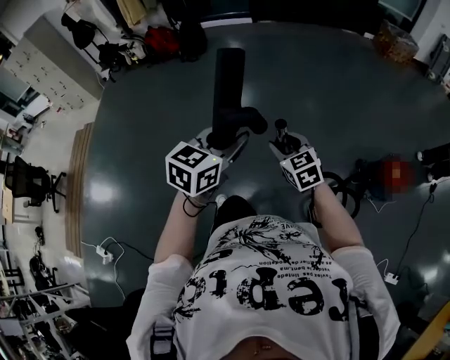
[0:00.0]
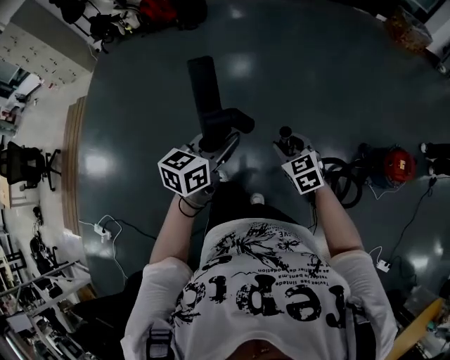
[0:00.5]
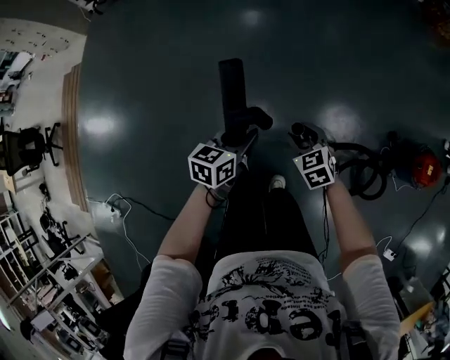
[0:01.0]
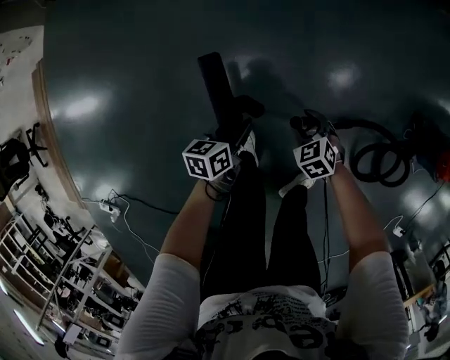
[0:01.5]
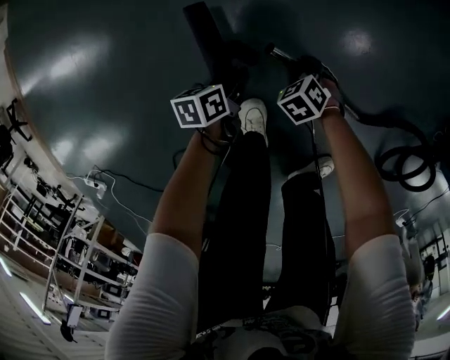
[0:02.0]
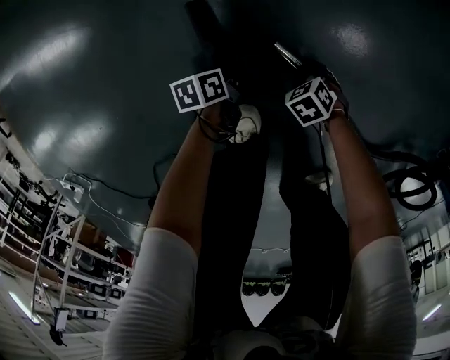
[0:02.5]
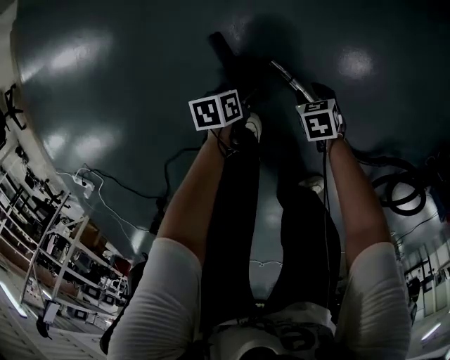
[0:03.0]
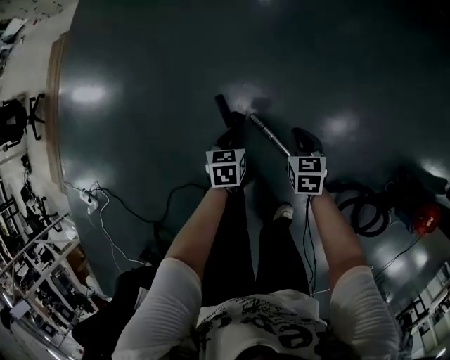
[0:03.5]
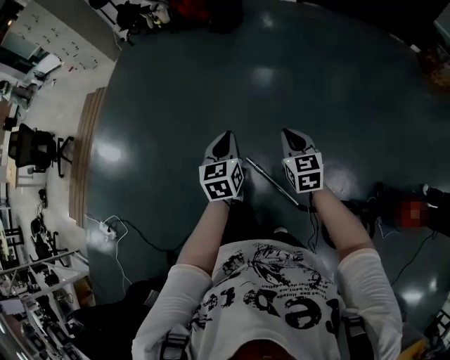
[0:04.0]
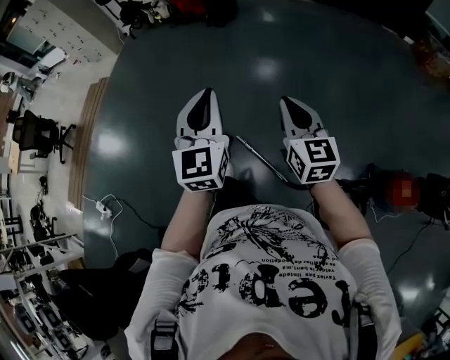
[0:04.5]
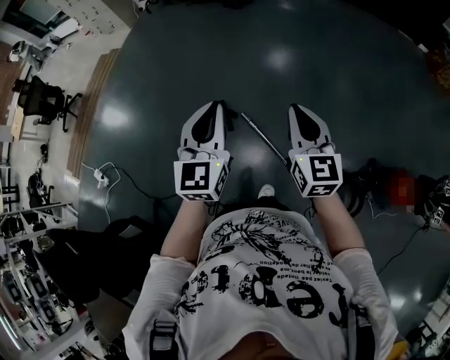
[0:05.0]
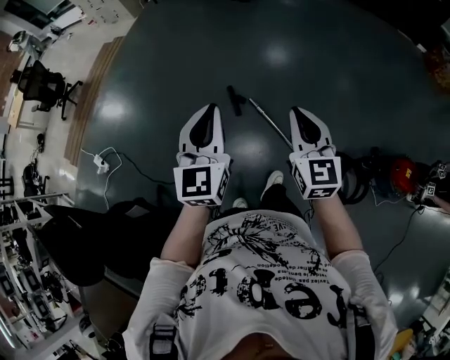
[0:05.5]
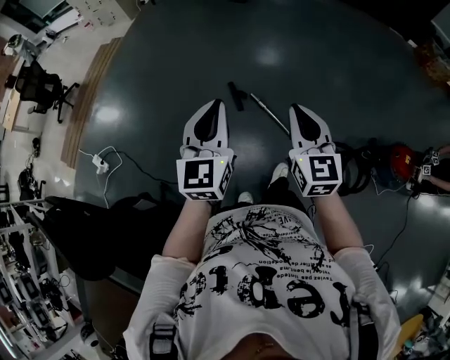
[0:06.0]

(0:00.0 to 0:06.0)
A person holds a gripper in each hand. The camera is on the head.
0:00.0 - 0:02.0: Both grippers travel together downward, about 80 cm. The left gripper twists some 60 degrees counterclockwise, seen from behind. Meanwhile the right gripper tips its fingers downward by about 50 degrees.
0:02.0 - 0:04.0: Both grippers travel together upward, about 70 cm. The right gripper angles its fingers upward, by roughly 50 degrees, and closes; the left gripper turns by about 50 degrees, and opens and closes again.
0:04.0 - 0:06.0: The pair of grippers is taken backward, about 50 cm. Both grippers move upward, about 20 cm. The left gripper turns by roughly 30 degrees.

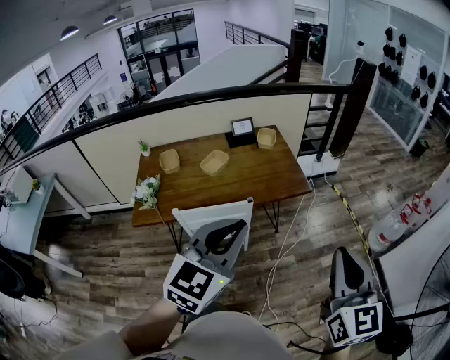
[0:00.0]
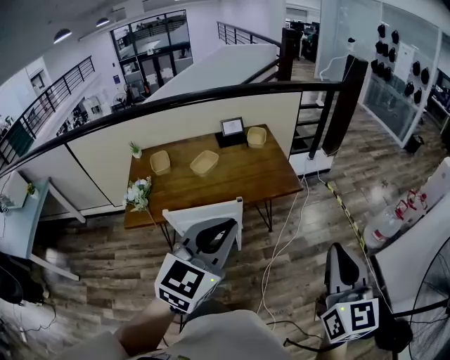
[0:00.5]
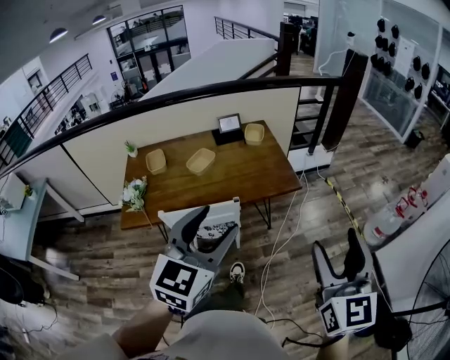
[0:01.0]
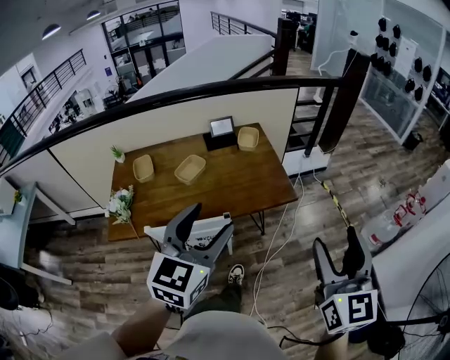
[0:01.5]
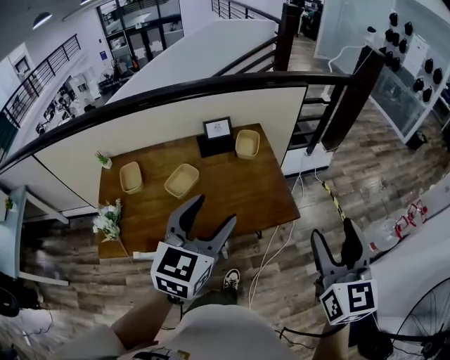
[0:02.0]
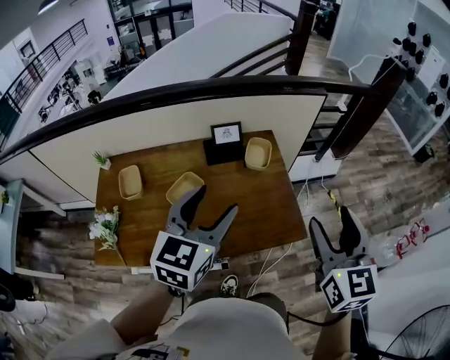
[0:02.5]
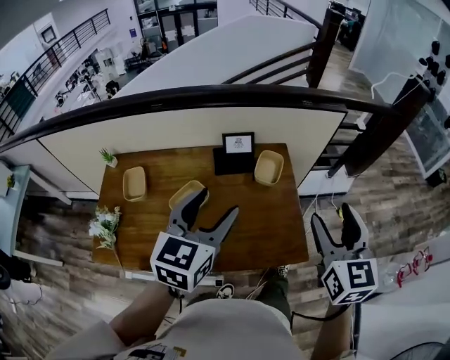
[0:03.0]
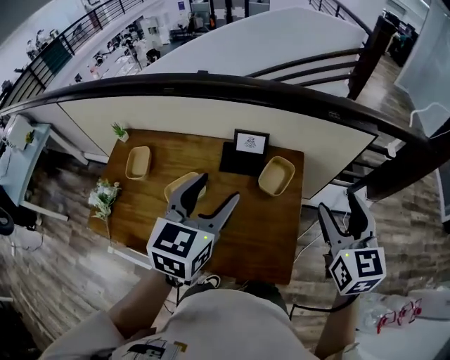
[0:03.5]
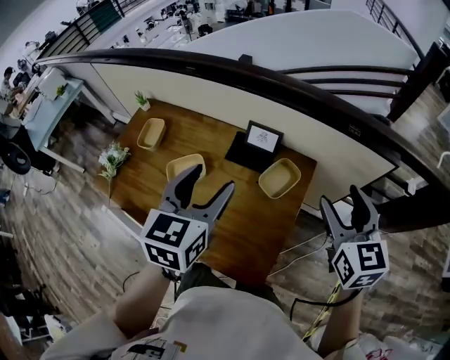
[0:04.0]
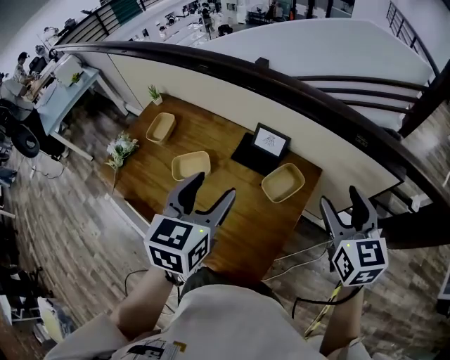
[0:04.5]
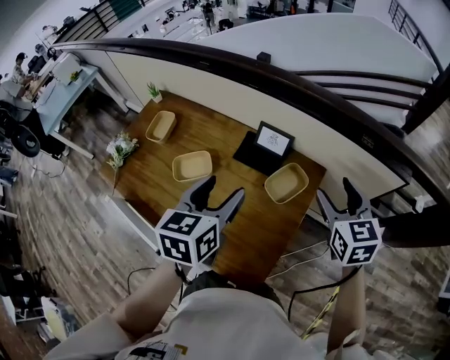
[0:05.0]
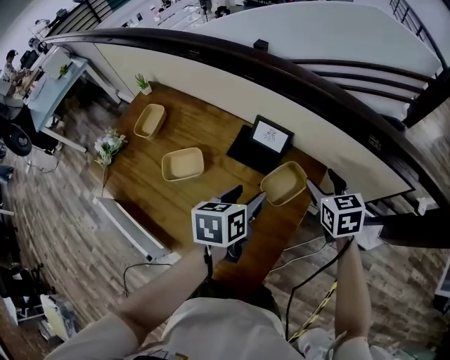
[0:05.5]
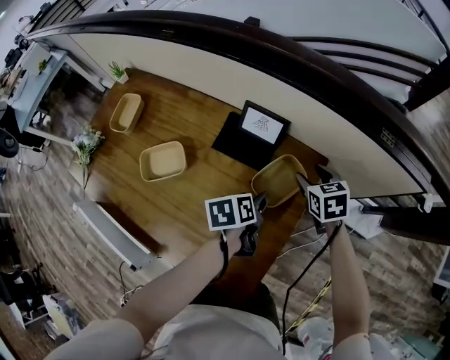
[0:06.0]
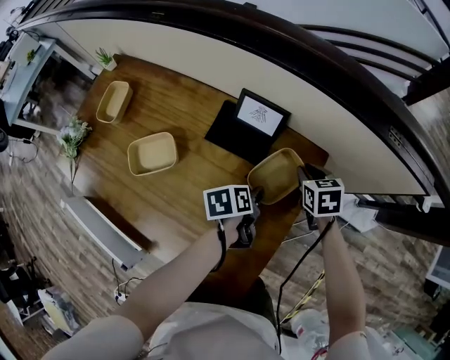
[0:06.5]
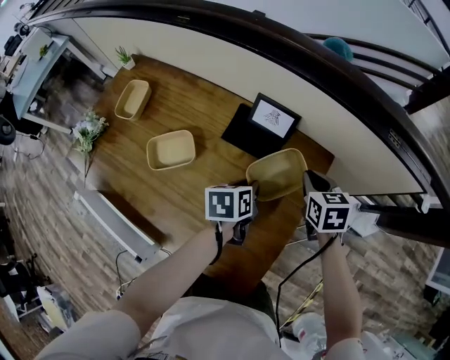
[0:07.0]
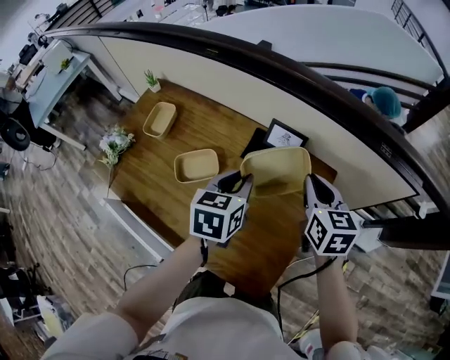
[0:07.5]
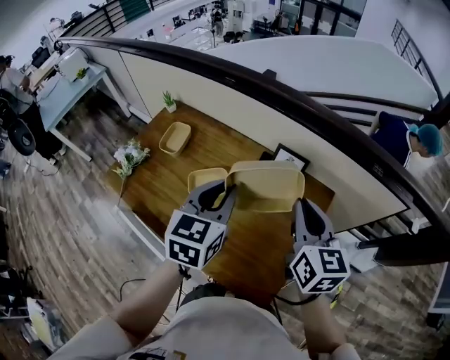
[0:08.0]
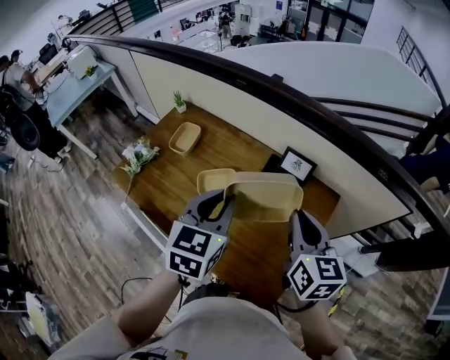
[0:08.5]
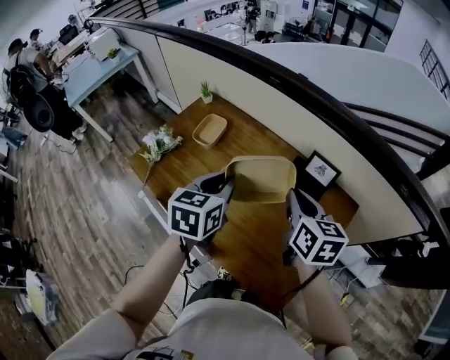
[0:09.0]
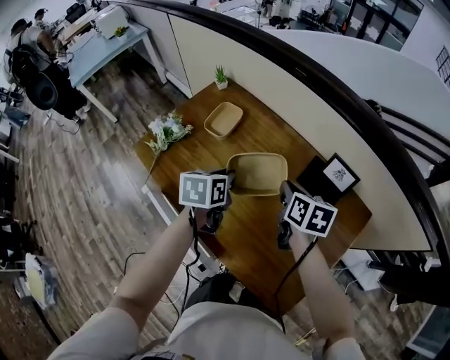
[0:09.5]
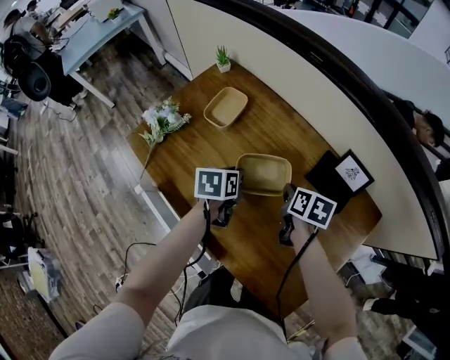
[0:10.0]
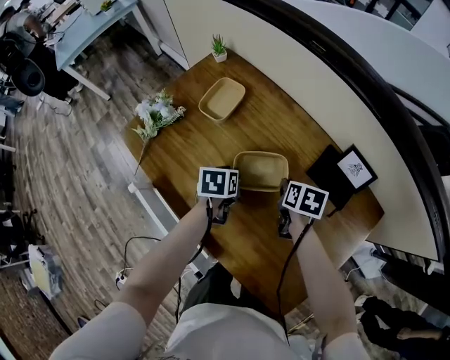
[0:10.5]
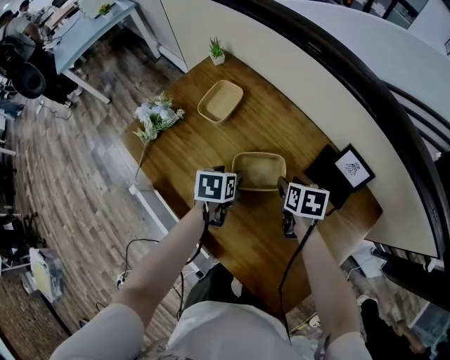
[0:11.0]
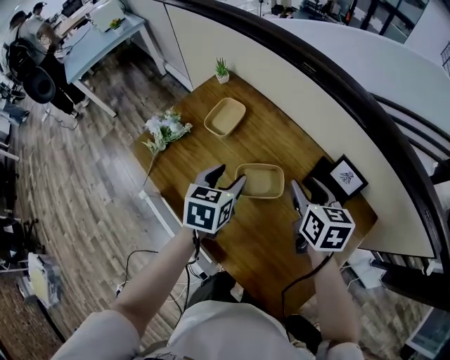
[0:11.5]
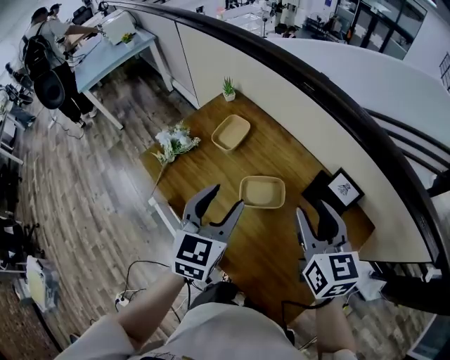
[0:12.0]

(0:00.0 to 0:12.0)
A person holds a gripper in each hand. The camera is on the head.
0:00.0 - 0:02.0: Both grippers move forward, about 30 cm. The right gripper opens up, while the left gripper opens up.
0:02.0 - 0:04.0: The left gripper shifts by approximately 30 cm, and swivels some 40 degrees. The right gripper shifts by roughly 50 cm, and swivels roughly 40 degrees.
0:04.0 - 0:06.0: The left gripper heads downward, covering approximately 35 cm, and rolls counterclockwise, seen from behind, by roughly 50 degrees; the right gripper is displaced downward and forward by approximately 35 cm, and angles its fingers downward, by approximately 30 degrees.
0:06.0 - 0:08.0: The left gripper shifts roughly 35 cm upward and to the left, rolls clockwise, seen from behind, by roughly 50 degrees, and closes its fingers. The right gripper is displaced upward, to the left and backward by about 35 cm, angles its fingers upward, by some 40 degrees, and closes up.
0:08.0 - 0:10.0: The right gripper travels downward, to the left and forward by roughly 35 cm, and tilts its fingers about 30 degrees downward. The left gripper shifts about 35 cm downward and to the left, and rotates about 40 degrees.
0:10.0 - 0:12.0: The two grippers go about 25 cm upward. The right gripper angles its fingers upward, by about 30 degrees, and opens. Meanwhile the left gripper tilts its fingers about 30 degrees upward, and opens its fingers.

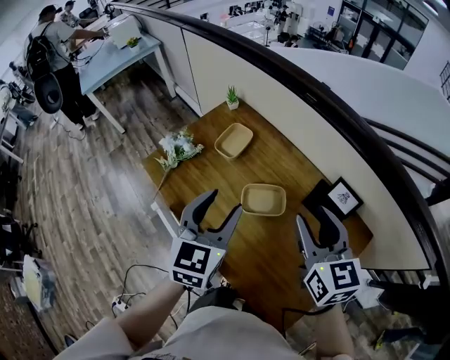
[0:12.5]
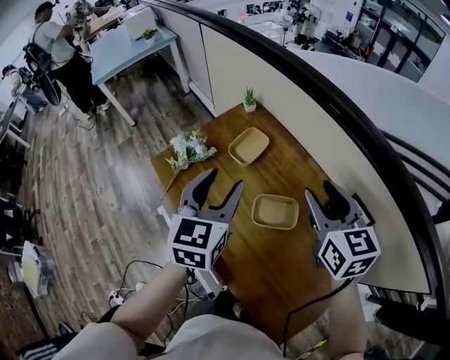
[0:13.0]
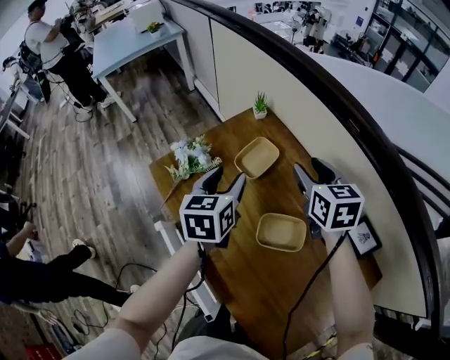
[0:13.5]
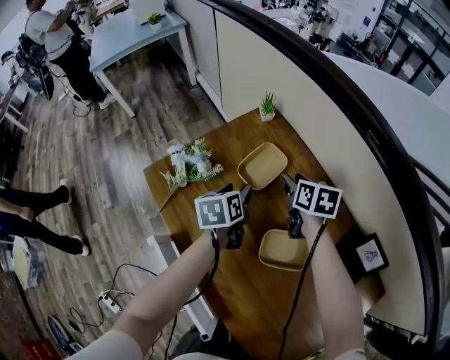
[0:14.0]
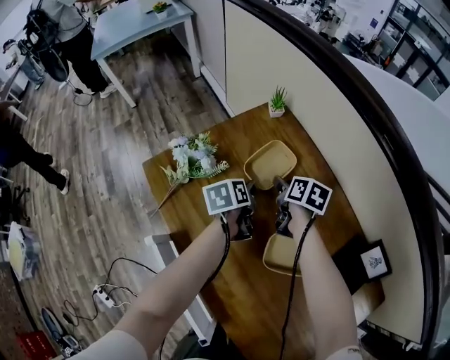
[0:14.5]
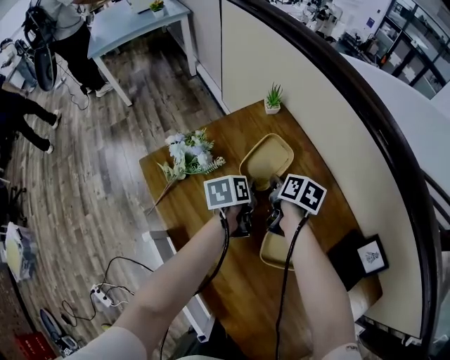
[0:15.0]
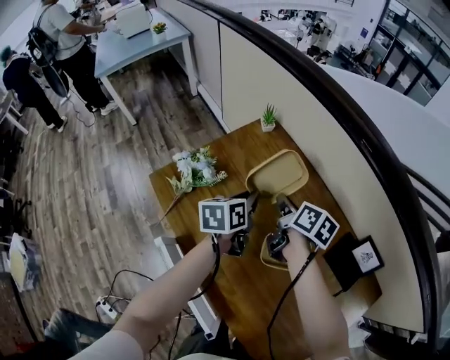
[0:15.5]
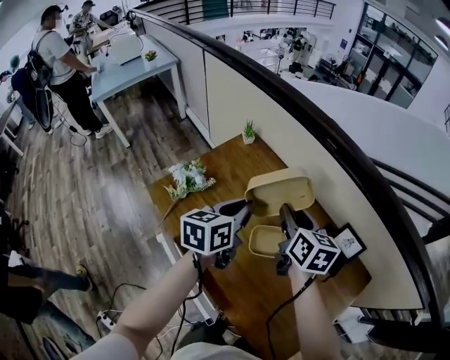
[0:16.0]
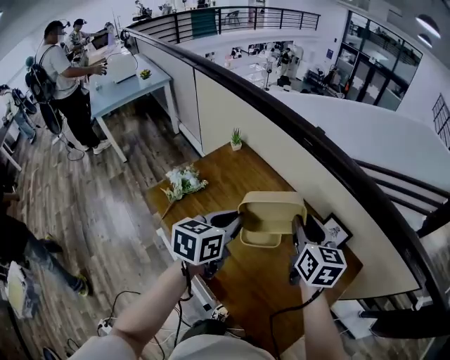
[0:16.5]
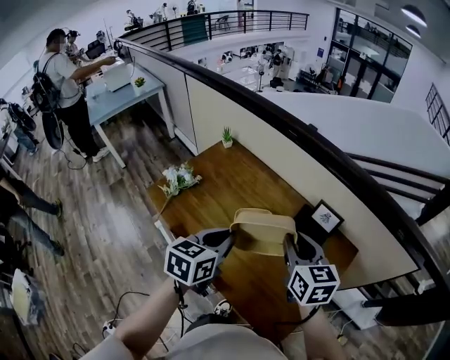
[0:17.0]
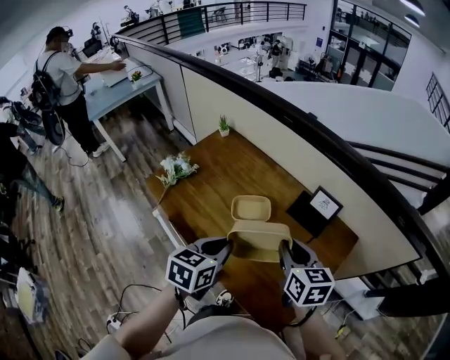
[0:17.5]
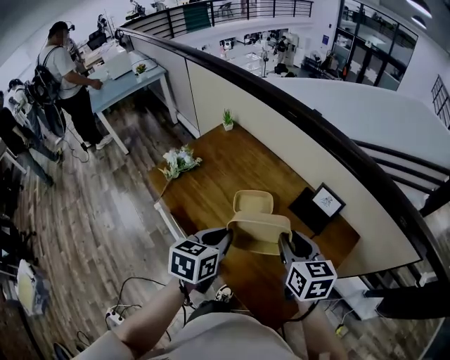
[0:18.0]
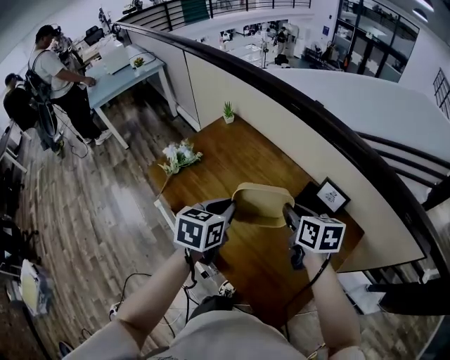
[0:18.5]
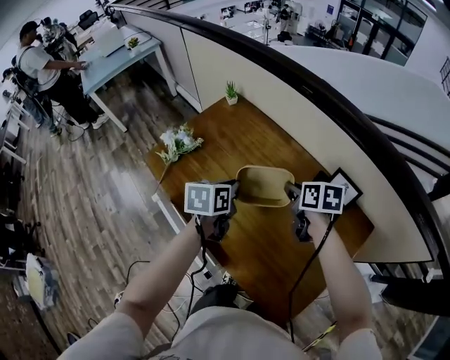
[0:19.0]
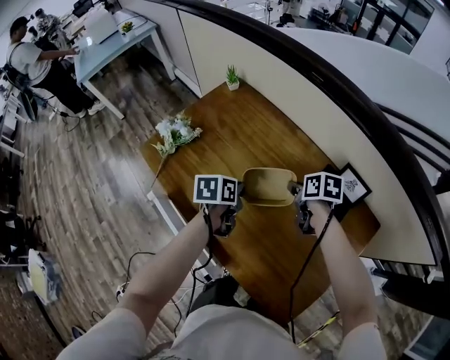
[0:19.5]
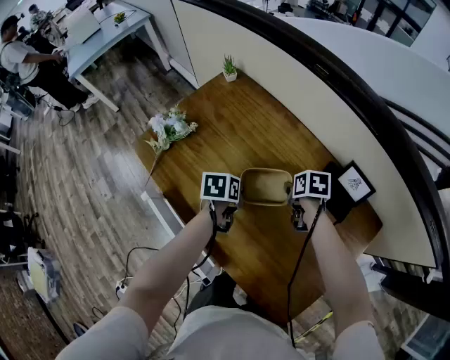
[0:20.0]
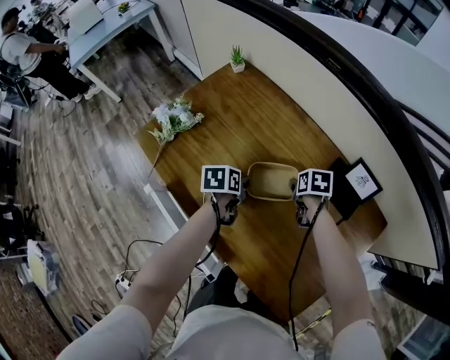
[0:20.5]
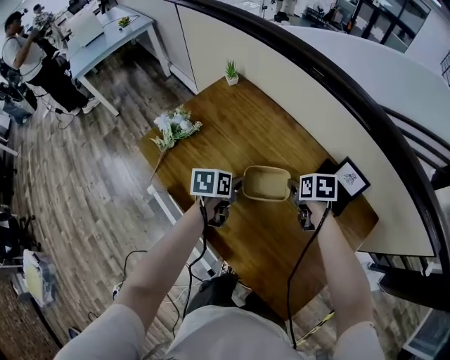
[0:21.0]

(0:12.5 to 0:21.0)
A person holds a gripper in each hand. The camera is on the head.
0:12.5 - 0:14.5: The two grippers go about 50 cm downward and forward. The right gripper changes its angle by approximately 40 degrees; the left gripper twists some 60 degrees counterclockwise, seen from behind.
0:14.5 - 0:16.5: The right gripper travels upward, backward and to the right by approximately 40 cm, turns by approximately 40 degrees, and closes, then reopens. The left gripper is displaced upward and backward by some 40 cm, turns by some 50 degrees, and closes.
0:16.5 - 0:19.0: Both grippers travel together downward, about 15 cm. The right gripper reaches approximately 15 cm backward, then returns, and swivels roughly 40 degrees; the left gripper travels backward and back again, some 15 cm each way, and rotates roughly 20 degrees.
0:19.0 - 0:21.0: Both grippers move downward, approximately 10 cm. The left gripper opens up; the right gripper opens up.
